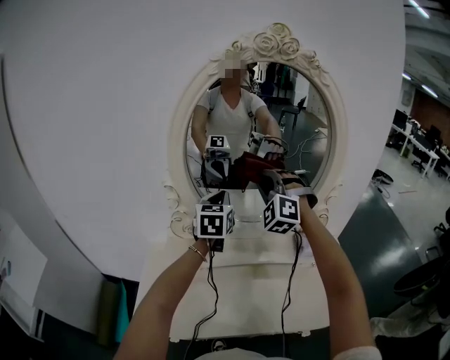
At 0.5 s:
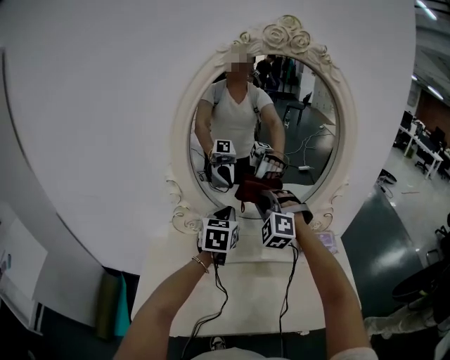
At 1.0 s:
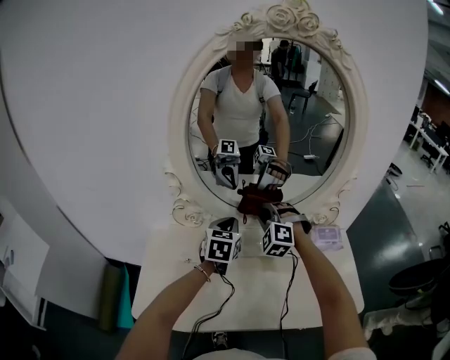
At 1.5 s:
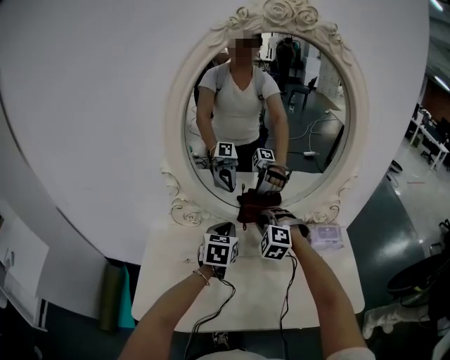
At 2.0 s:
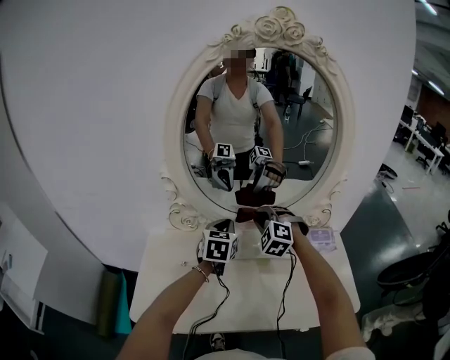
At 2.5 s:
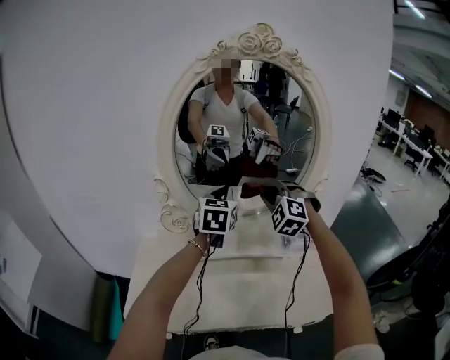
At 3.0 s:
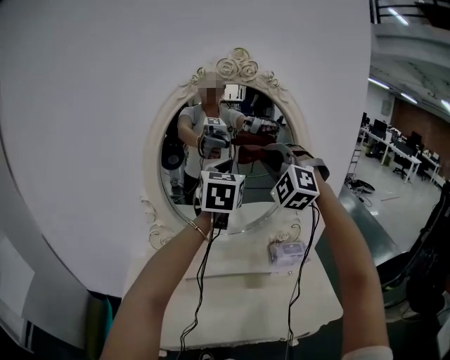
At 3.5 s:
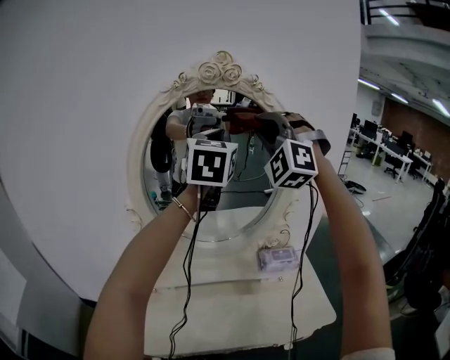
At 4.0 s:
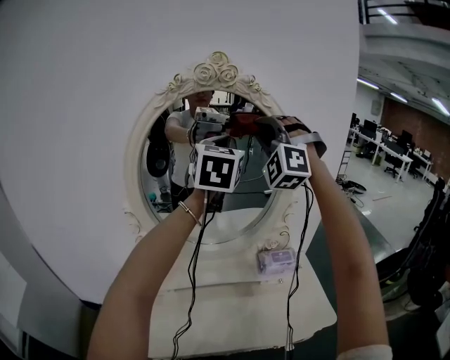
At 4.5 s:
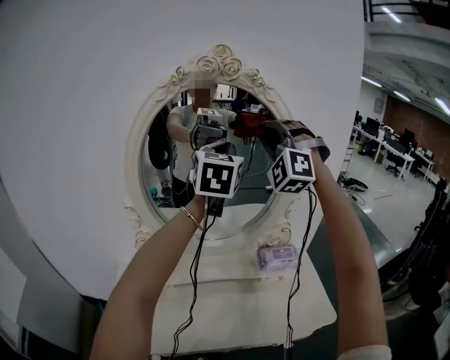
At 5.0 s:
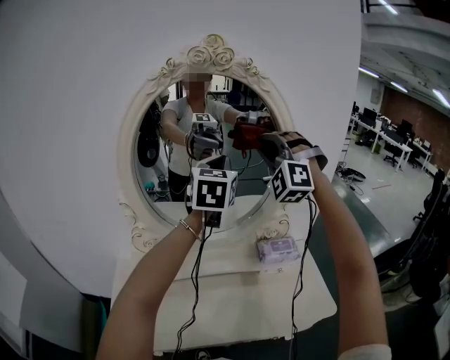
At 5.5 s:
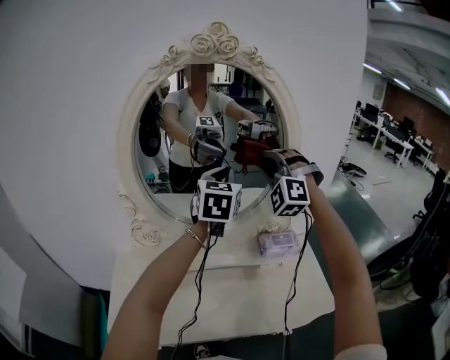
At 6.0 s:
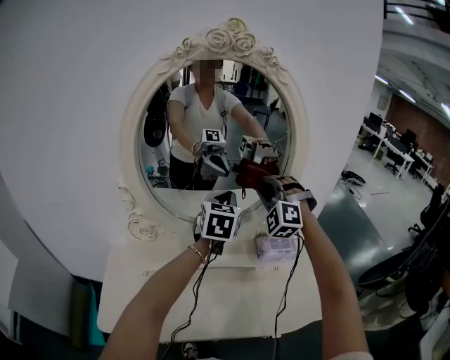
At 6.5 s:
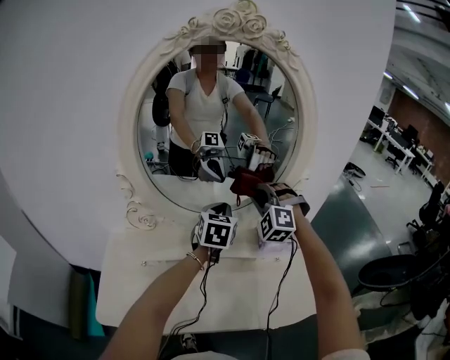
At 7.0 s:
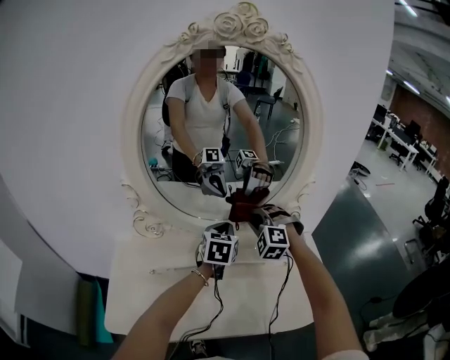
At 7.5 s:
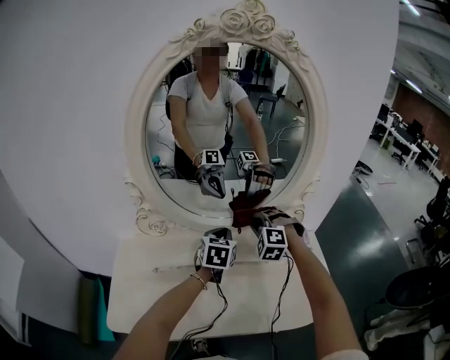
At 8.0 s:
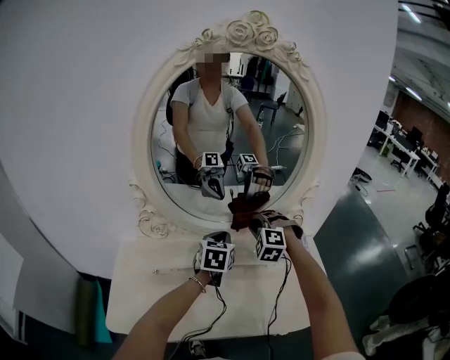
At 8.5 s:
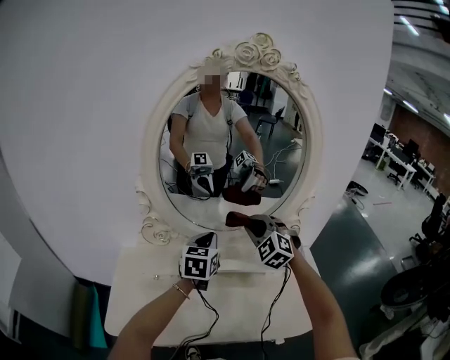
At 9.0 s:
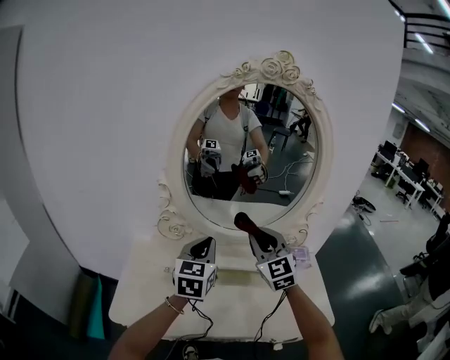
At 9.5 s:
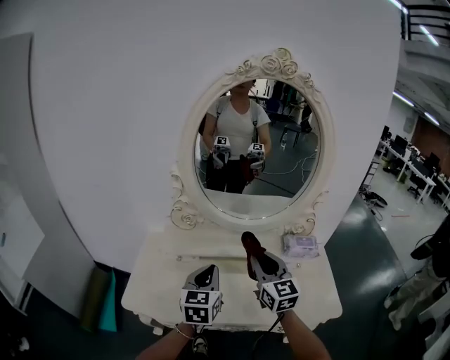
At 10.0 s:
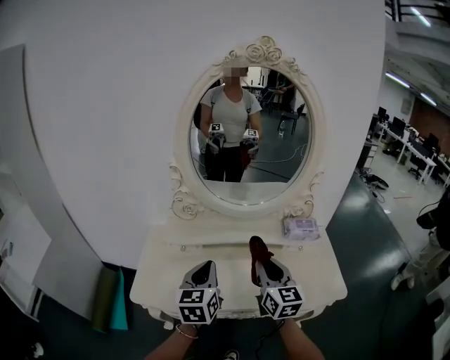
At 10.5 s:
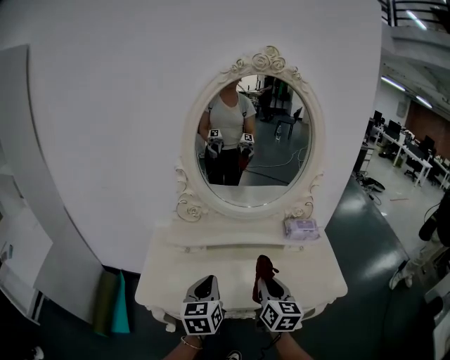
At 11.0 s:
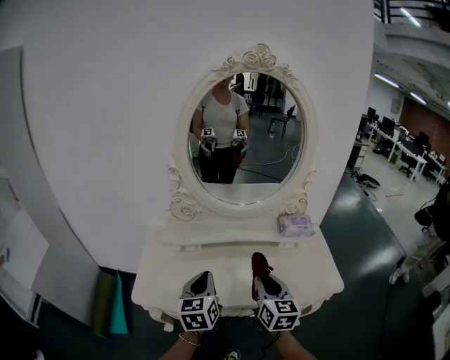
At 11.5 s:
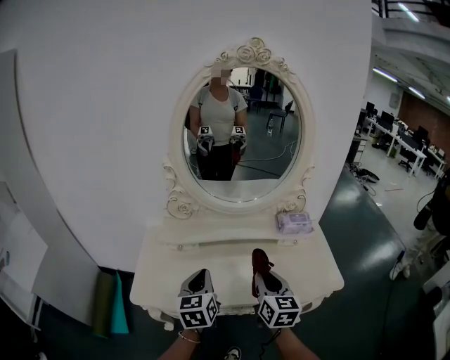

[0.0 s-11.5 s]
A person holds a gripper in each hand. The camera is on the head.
0.0 to 2.0 s: Both grippers travel together downward, roughly 15 cm. The right gripper rotates roughly 30 degrees.
2.0 to 4.0 s: The grippers both shift upward by some 40 cm. The right gripper tips its fingers upward by approximately 40 degrees, while the left gripper changes its angle by approximately 30 degrees.
4.0 to 6.0 s: The grippers both shift downward by roughly 25 cm. The right gripper turns by roughly 20 degrees.
6.0 to 7.5 s: Both grippers travel together downward, about 20 cm. The right gripper rotates approximately 20 degrees.
7.5 to 9.5 s: The right gripper goes about 25 cm backward and upward, and twists about 70 degrees clockwise, seen from behind; the left gripper heads backward and to the left, covering about 25 cm.
9.5 to 11.5 s: The left gripper moves backward, some 5 cm. Meanwhile the right gripper heads backward and downward, covering approximately 15 cm, and changes its angle by approximately 20 degrees.

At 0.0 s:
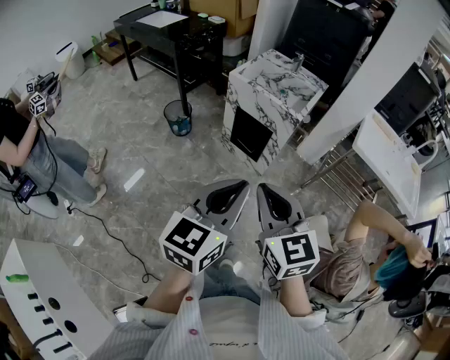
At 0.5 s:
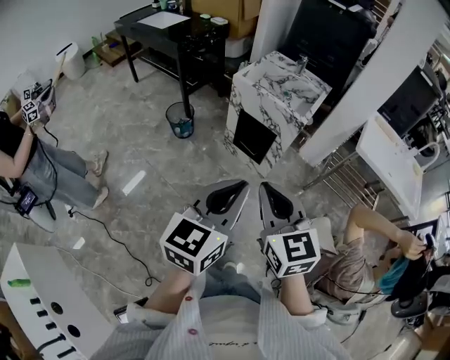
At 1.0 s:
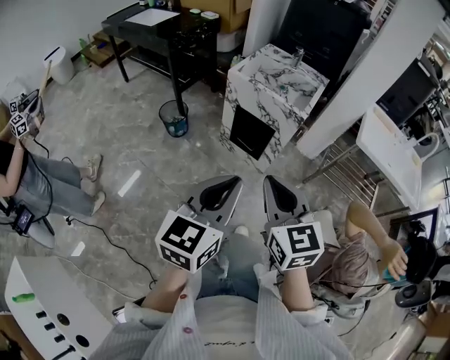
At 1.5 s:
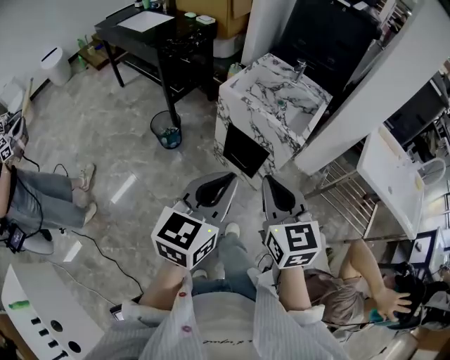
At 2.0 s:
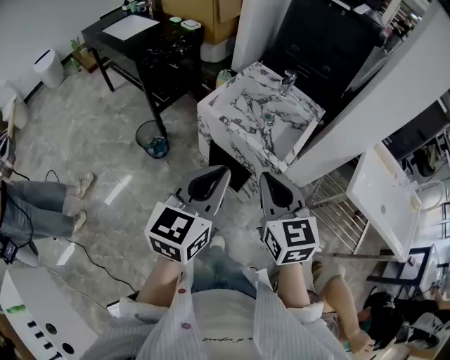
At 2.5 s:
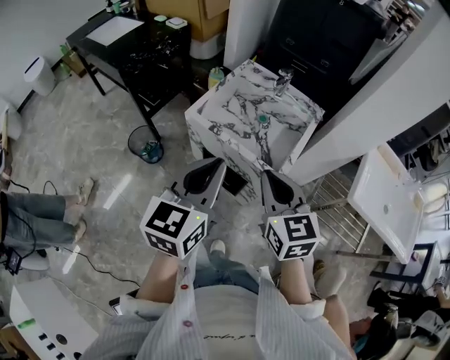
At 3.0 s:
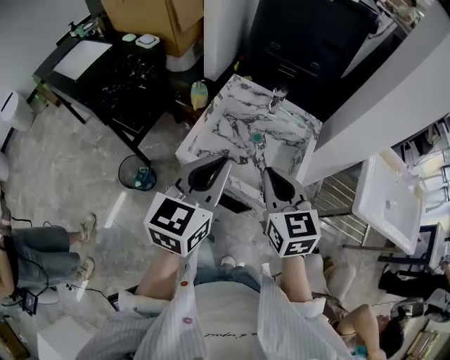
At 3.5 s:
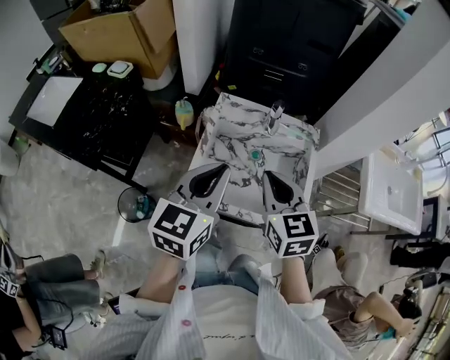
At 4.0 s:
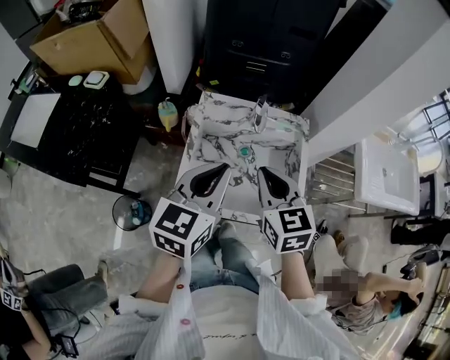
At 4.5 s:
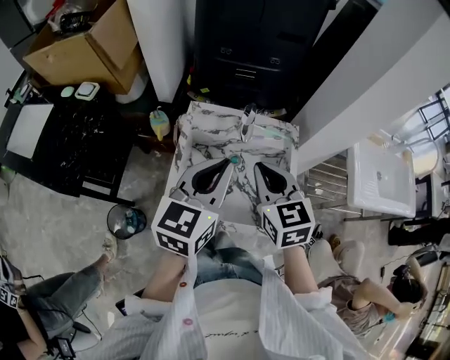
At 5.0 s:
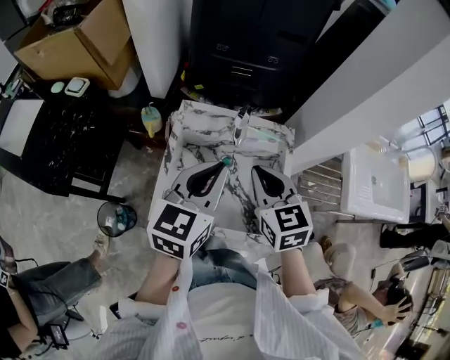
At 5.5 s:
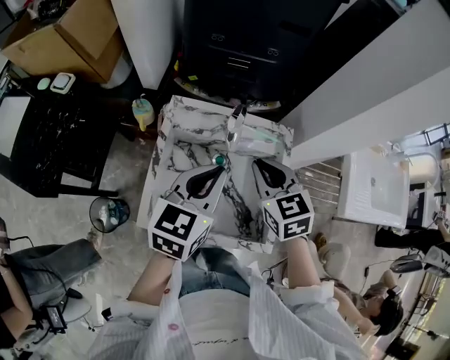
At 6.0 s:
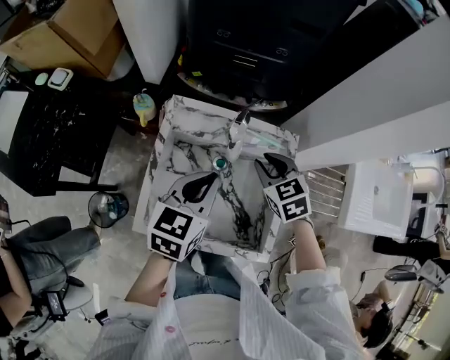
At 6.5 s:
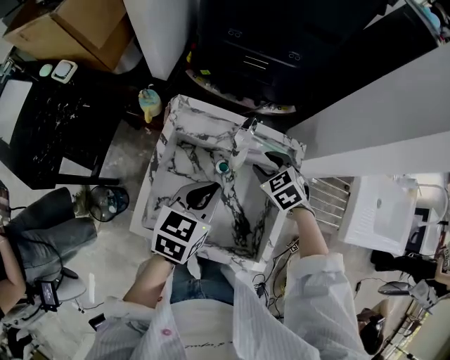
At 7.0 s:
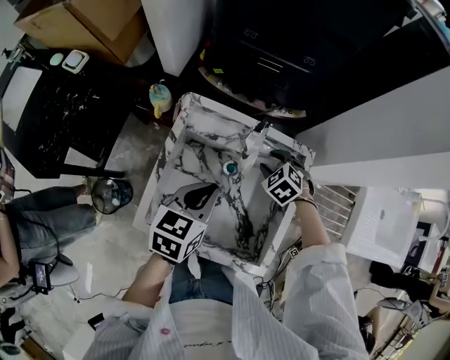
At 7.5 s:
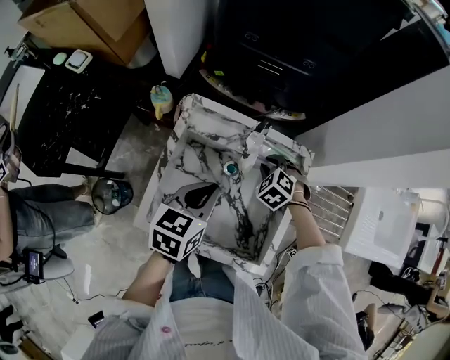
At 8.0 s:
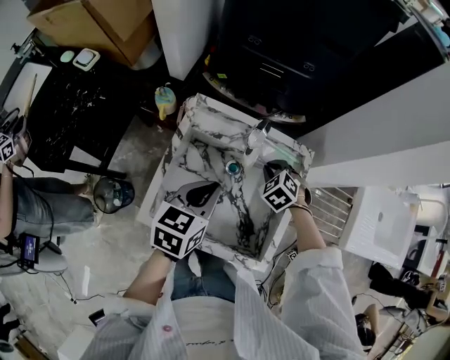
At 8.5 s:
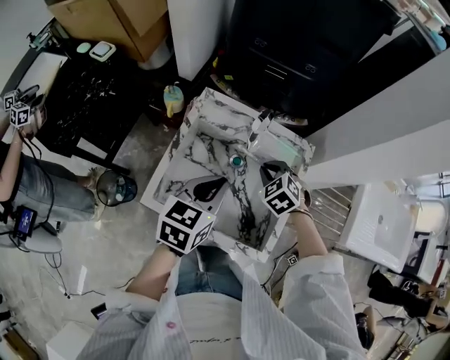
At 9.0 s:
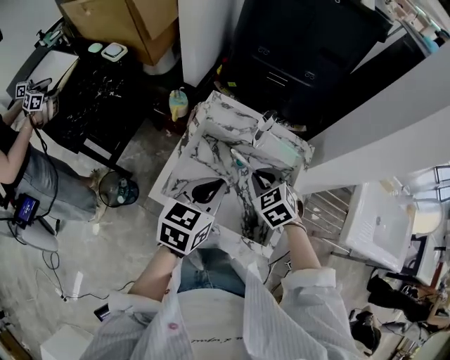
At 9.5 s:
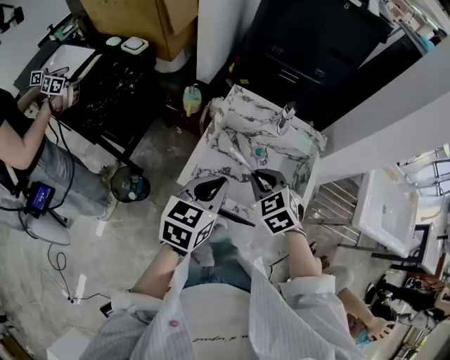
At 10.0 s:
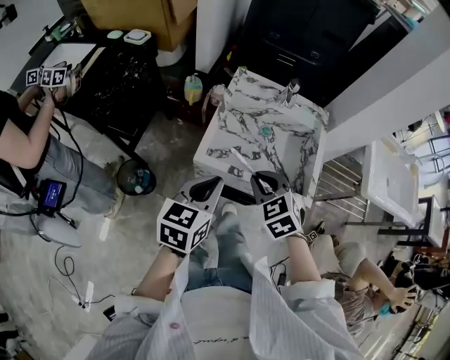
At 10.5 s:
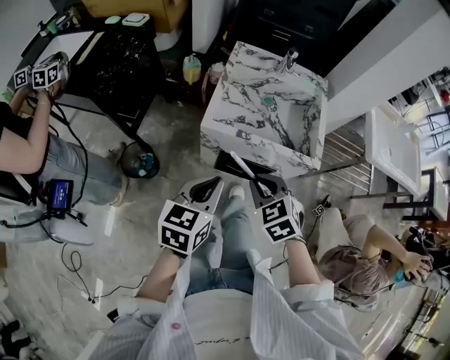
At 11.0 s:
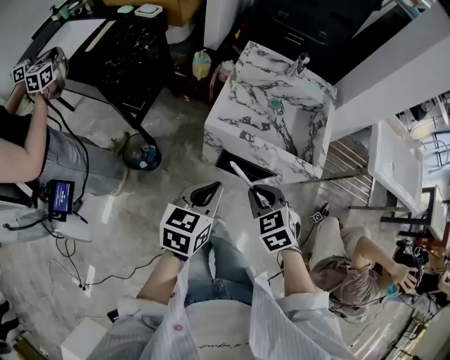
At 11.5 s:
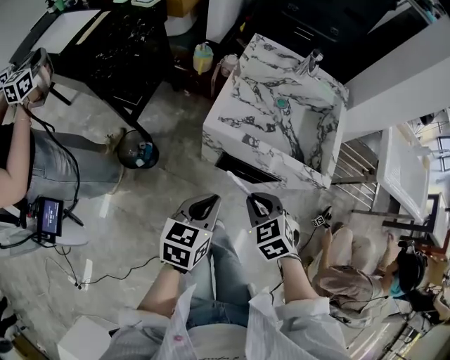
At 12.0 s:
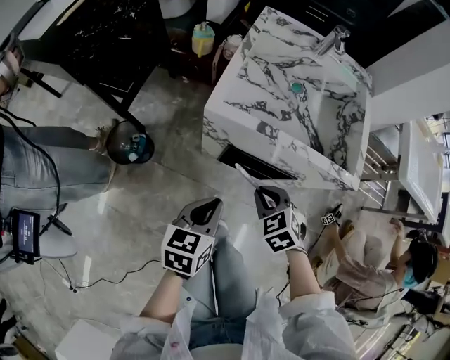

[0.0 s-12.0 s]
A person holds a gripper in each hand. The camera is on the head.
0.0 to 2.0 s: The grippers both shift forward by some 35 cm.
2.0 to 4.0 s: The right gripper shifts by roughly 35 cm, and swivels about 30 degrees. Meanwhile the left gripper moves some 40 cm, and swivels about 30 degrees.
4.0 to 6.0 s: Both grippers travel together forward, downward and to the right, roughly 20 cm. The right gripper rotates roughly 30 degrees.
6.0 to 8.0 s: The right gripper moves downward, about 10 cm, changes its angle by some 30 degrees, and opens, then closes again.
8.0 to 10.0 s: The right gripper goes approximately 35 cm backward, to the left and upward, and swivels roughly 20 degrees; the left gripper goes approximately 25 cm backward and to the left.
10.0 to 12.0 s: Both grippers travel together downward and backward, roughly 25 cm.

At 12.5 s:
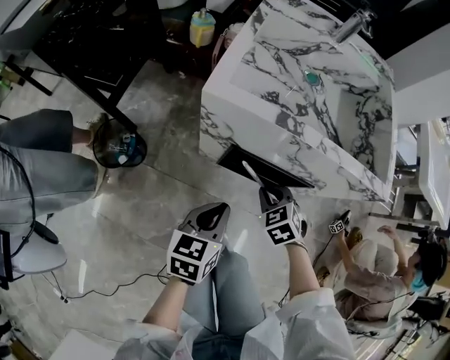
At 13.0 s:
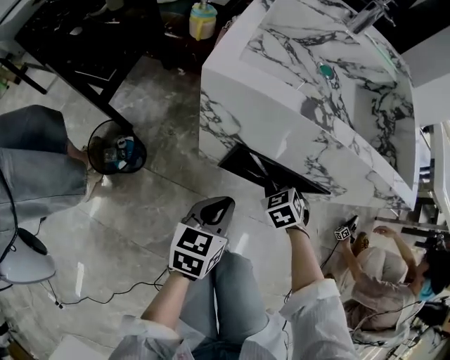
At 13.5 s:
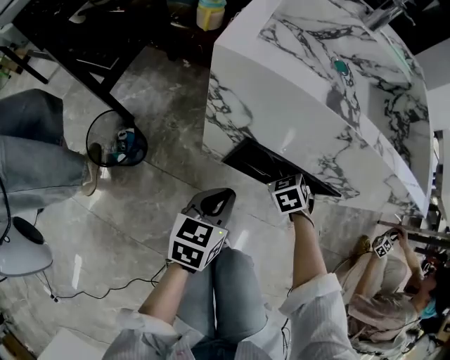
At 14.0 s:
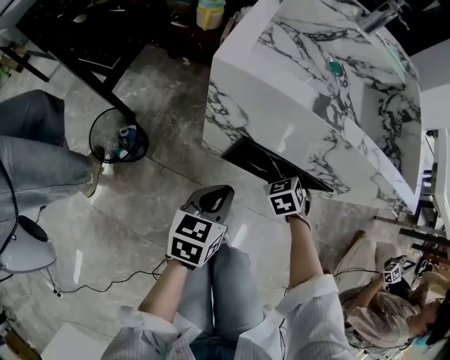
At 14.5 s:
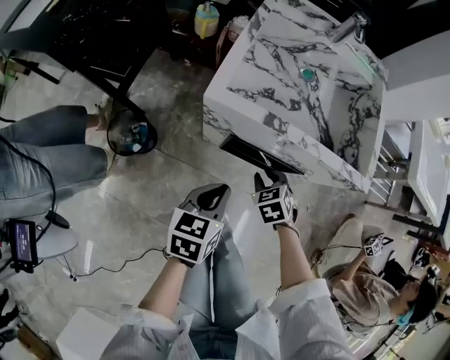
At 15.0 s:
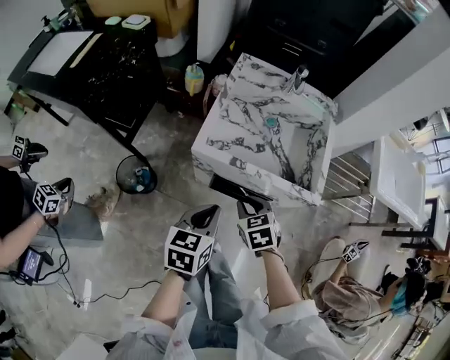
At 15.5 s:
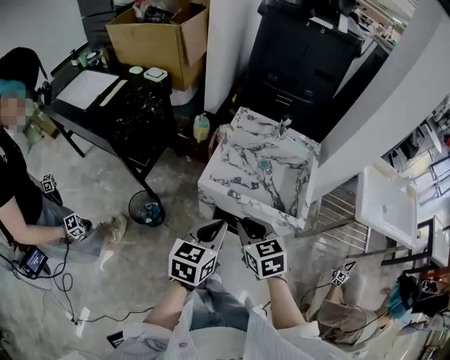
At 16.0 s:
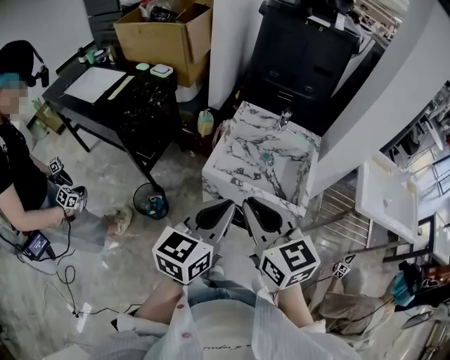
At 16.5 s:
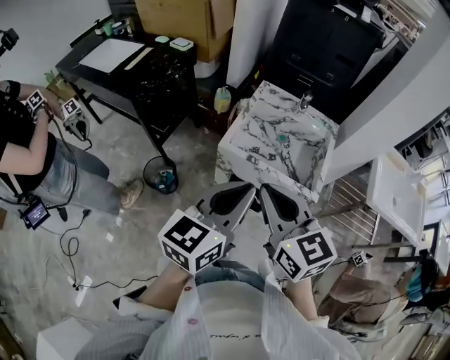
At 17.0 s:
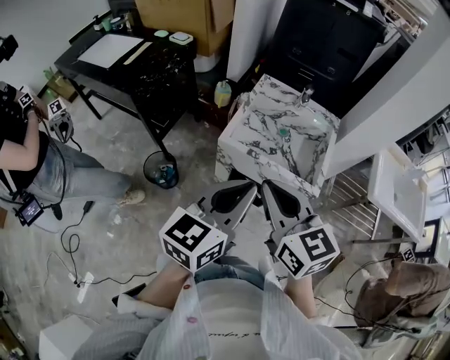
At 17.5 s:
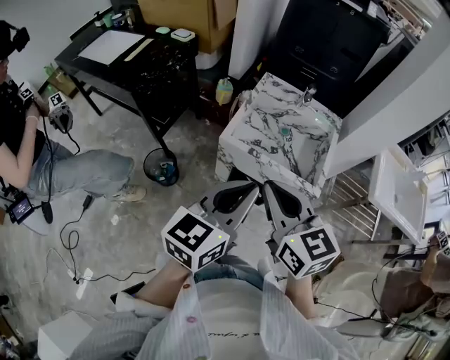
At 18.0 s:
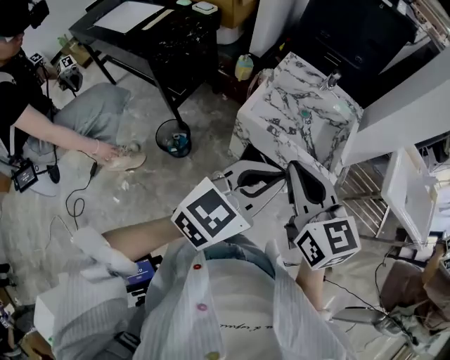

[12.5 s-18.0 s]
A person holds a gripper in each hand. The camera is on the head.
12.5 to 14.5 s: The left gripper moves upward, roughly 5 cm. The right gripper moves some 10 cm downward and comes back.
14.5 to 16.0 s: Both grippers move upward, roughly 50 cm. The right gripper tilts its fingers approximately 50 degrees upward. Meanwhile the left gripper rotates approximately 30 degrees.
16.0 to 18.0 s: The left gripper changes place by roughly 5 cm.
